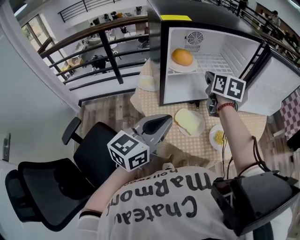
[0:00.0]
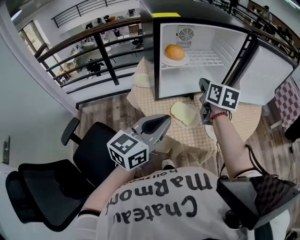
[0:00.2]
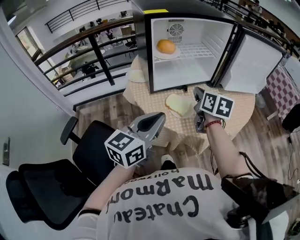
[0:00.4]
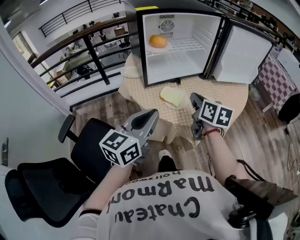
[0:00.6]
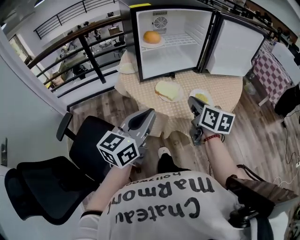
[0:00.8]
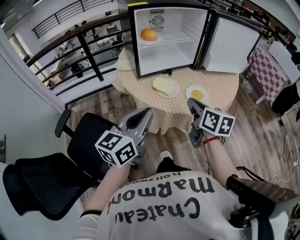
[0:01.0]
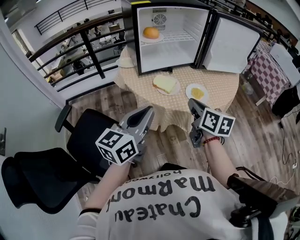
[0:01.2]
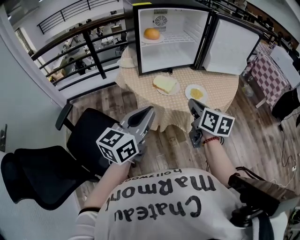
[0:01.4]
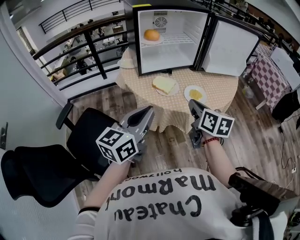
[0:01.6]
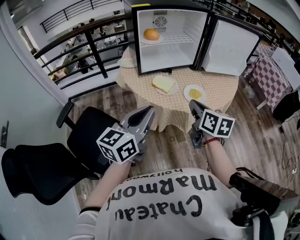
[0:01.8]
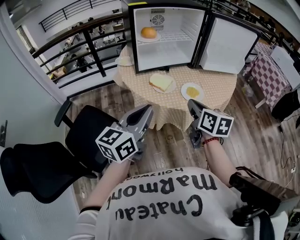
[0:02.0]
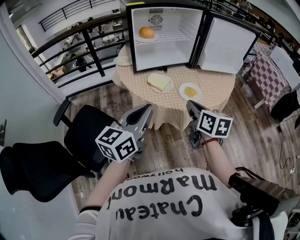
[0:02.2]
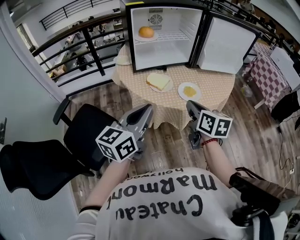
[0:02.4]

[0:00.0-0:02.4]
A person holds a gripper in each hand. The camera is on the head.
0:00.0 to 0:01.2: The left gripper shifts about 20 cm backward, while the right gripper shifts some 35 cm backward.
0:01.2 to 0:02.4: The right gripper changes place by roughly 5 cm; the left gripper travels to the right by about 5 cm.

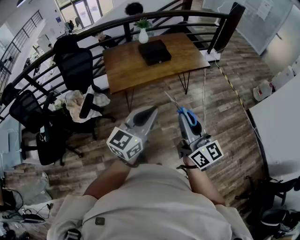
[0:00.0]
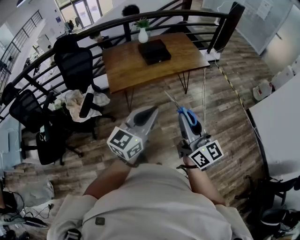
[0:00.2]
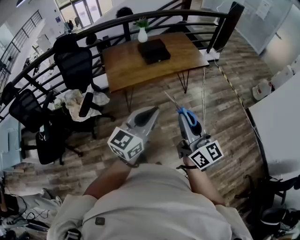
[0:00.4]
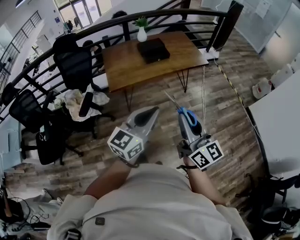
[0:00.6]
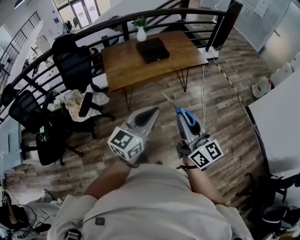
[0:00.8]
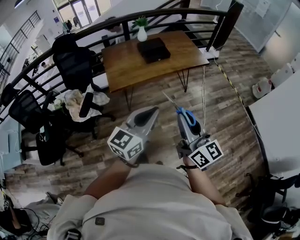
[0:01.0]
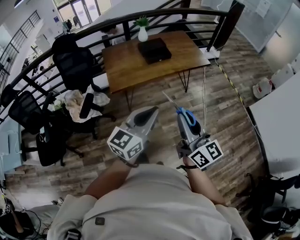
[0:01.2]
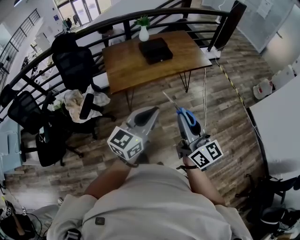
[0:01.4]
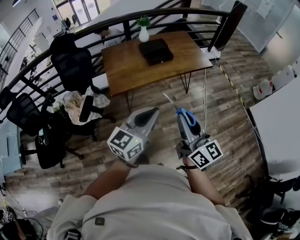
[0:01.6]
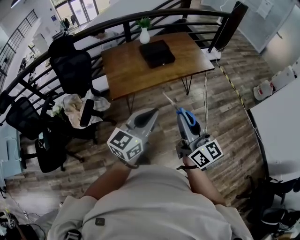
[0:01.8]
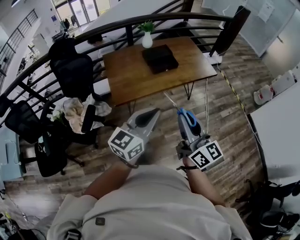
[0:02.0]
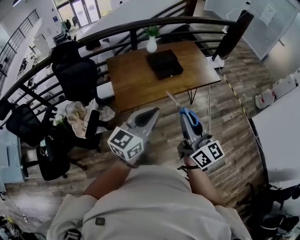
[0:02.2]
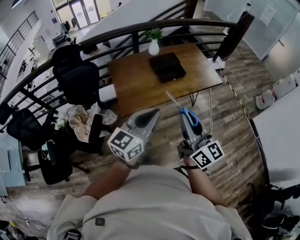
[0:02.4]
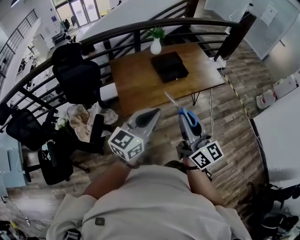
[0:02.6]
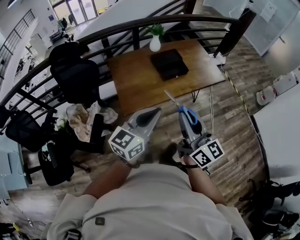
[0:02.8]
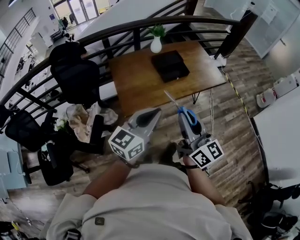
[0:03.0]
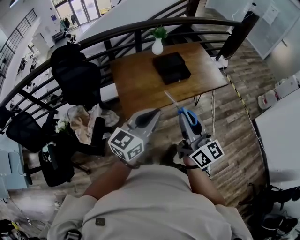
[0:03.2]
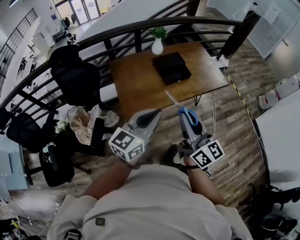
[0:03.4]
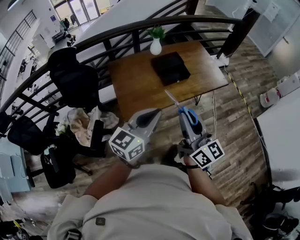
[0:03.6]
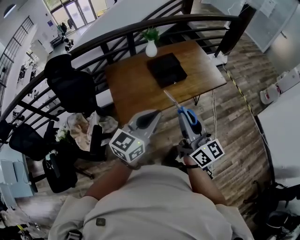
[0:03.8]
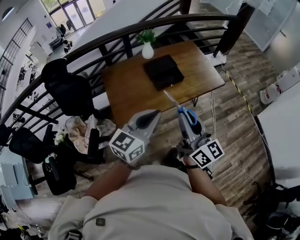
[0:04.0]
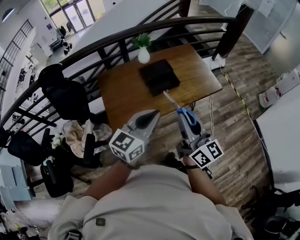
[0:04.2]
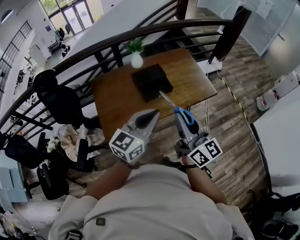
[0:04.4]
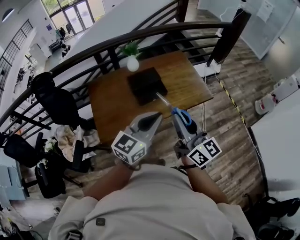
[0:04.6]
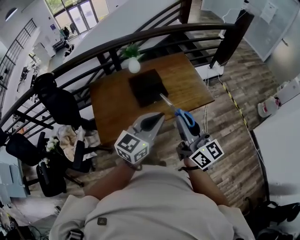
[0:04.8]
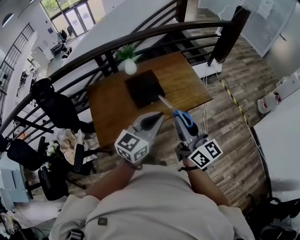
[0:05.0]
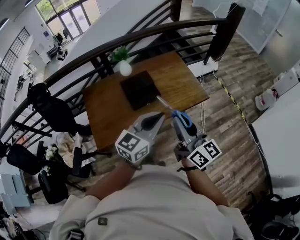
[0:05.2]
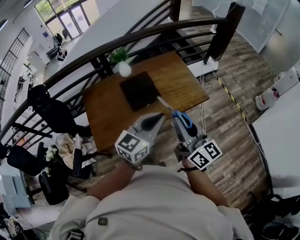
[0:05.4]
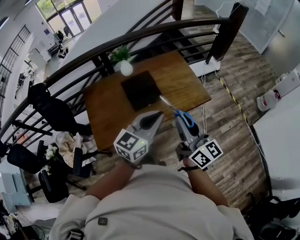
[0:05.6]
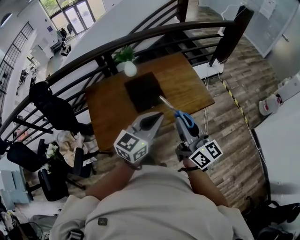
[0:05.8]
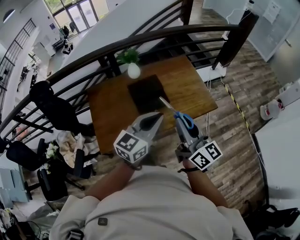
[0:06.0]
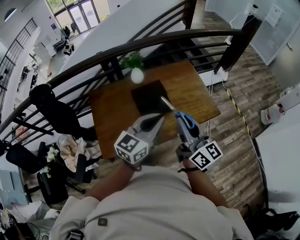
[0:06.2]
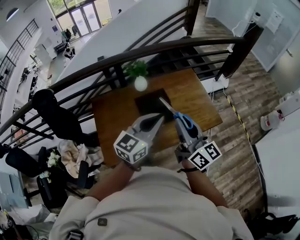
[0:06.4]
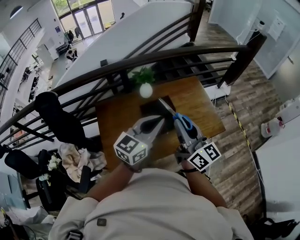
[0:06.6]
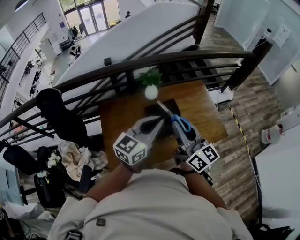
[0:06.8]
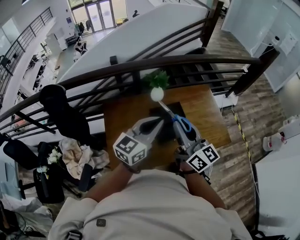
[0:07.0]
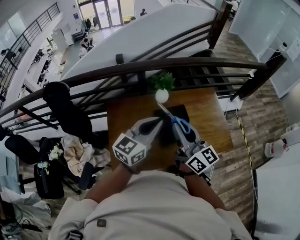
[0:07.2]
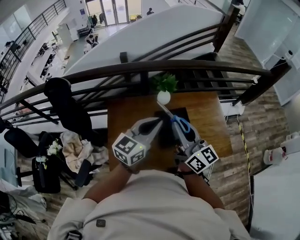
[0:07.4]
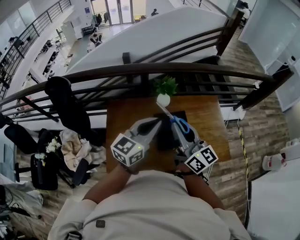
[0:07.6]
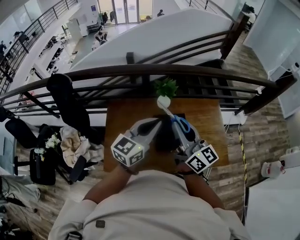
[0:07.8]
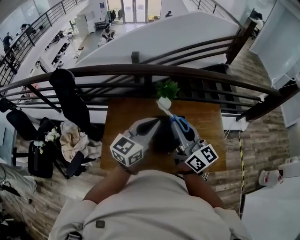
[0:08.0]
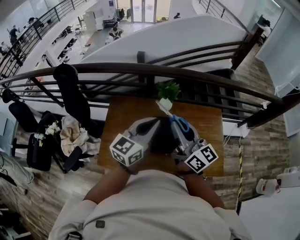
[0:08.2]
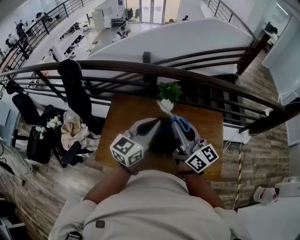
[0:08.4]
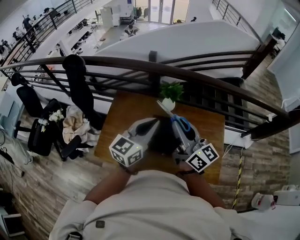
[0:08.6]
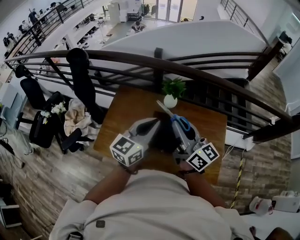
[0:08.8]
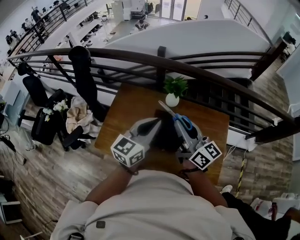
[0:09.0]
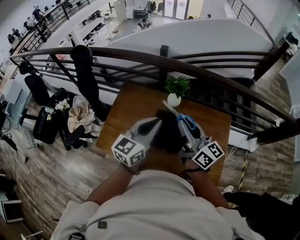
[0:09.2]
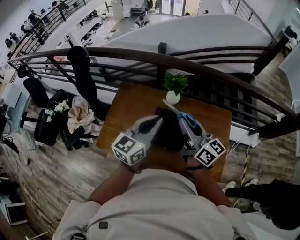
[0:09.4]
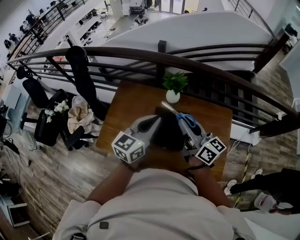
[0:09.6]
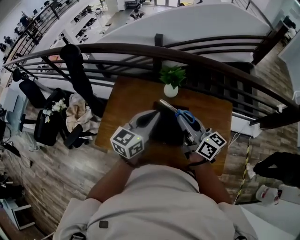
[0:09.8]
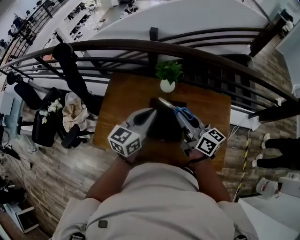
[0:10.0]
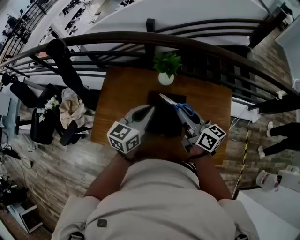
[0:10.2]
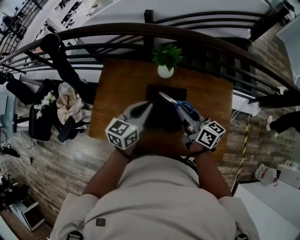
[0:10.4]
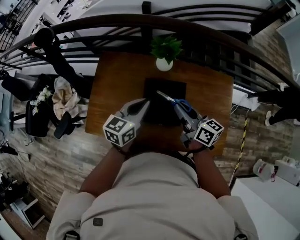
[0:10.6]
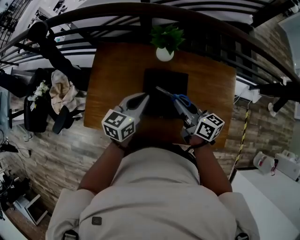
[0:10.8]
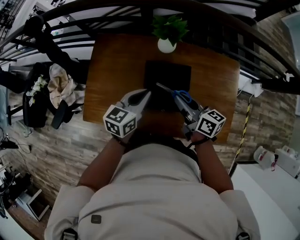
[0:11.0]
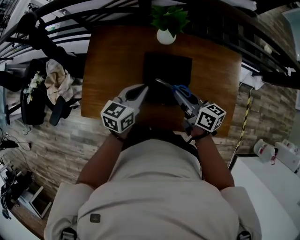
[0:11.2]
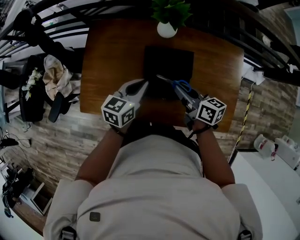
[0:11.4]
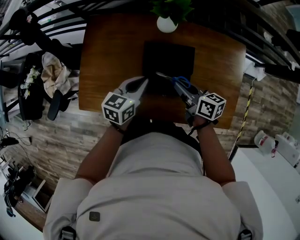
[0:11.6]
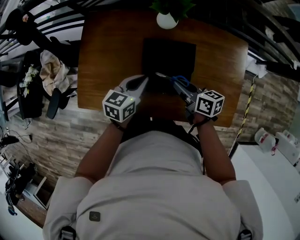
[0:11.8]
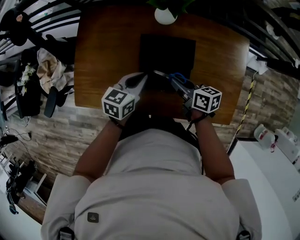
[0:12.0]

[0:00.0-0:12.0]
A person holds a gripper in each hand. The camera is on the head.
0:00.0 to 0:01.6: The left gripper ends up about 5 cm from where it was. Meanwhile the right gripper moves roughly 5 cm.
0:01.6 to 0:03.0: The grippers both shift forward and to the left by roughly 25 cm.
0:03.0 to 0:04.4: Both grippers move forward and to the right, some 25 cm.
0:04.4 to 0:06.0: The left gripper goes approximately 15 cm forward and to the right. The right gripper heads forward, covering roughly 15 cm.
0:06.0 to 0:07.6: Both grippers move forward and to the left, some 30 cm.
0:07.6 to 0:09.0: The grippers both shift to the right by about 10 cm. The right gripper turns by roughly 30 degrees. The left gripper rotates approximately 20 degrees.
0:09.0 to 0:10.4: The right gripper shifts some 15 cm downward, and turns by roughly 20 degrees, while the left gripper is displaced downward and forward by approximately 15 cm.
0:10.4 to 0:12.0: The two grippers go about 20 cm downward. The right gripper changes its angle by some 30 degrees. The left gripper swivels some 20 degrees.

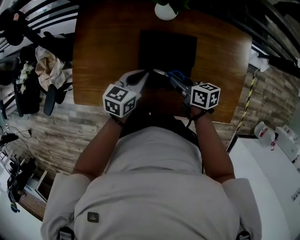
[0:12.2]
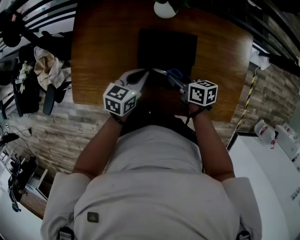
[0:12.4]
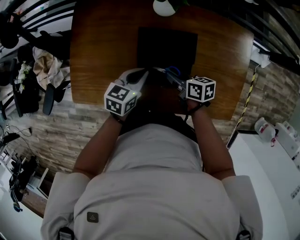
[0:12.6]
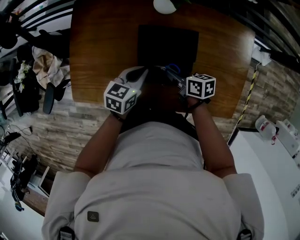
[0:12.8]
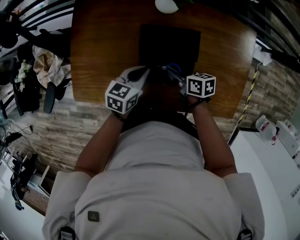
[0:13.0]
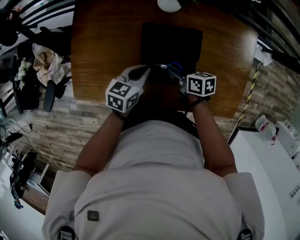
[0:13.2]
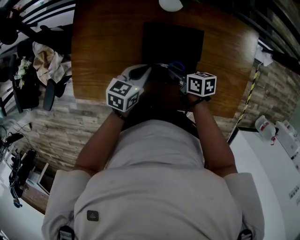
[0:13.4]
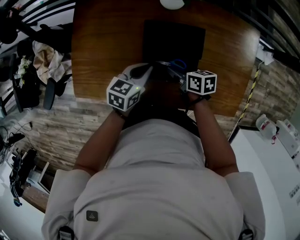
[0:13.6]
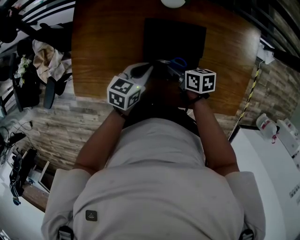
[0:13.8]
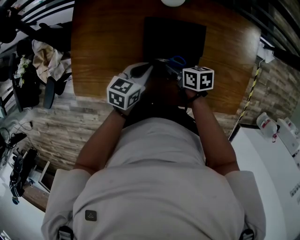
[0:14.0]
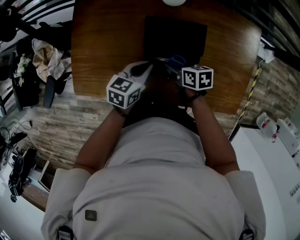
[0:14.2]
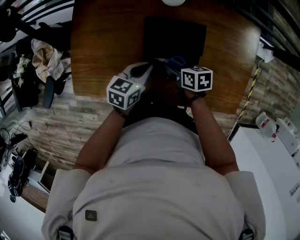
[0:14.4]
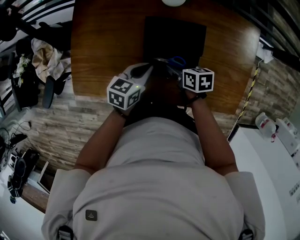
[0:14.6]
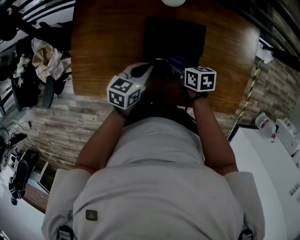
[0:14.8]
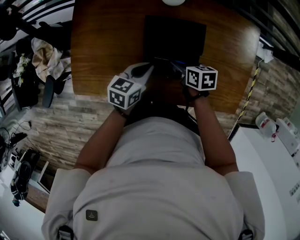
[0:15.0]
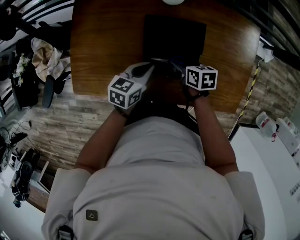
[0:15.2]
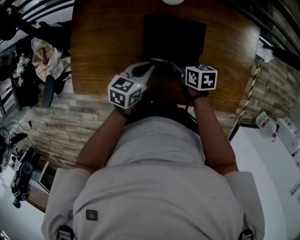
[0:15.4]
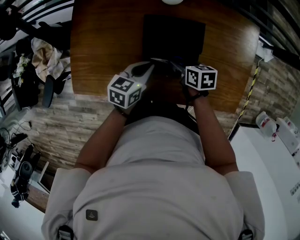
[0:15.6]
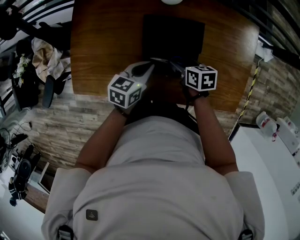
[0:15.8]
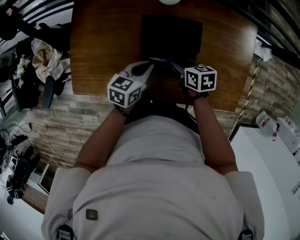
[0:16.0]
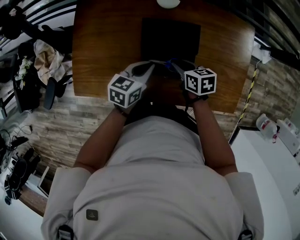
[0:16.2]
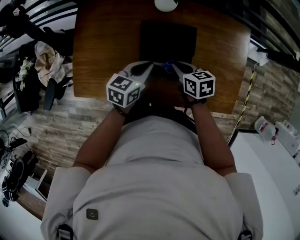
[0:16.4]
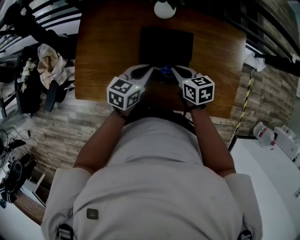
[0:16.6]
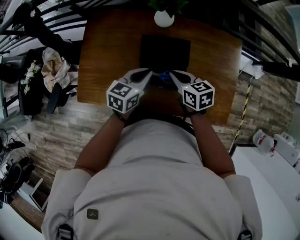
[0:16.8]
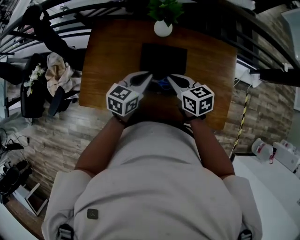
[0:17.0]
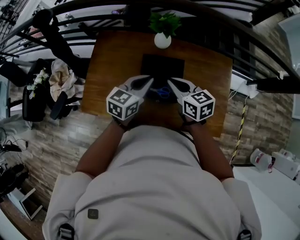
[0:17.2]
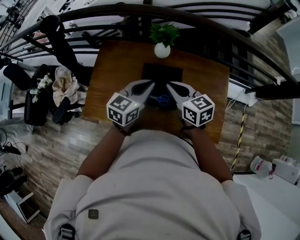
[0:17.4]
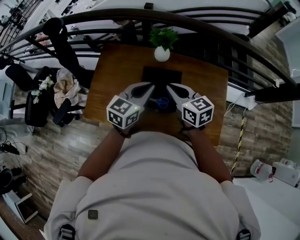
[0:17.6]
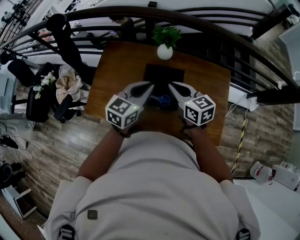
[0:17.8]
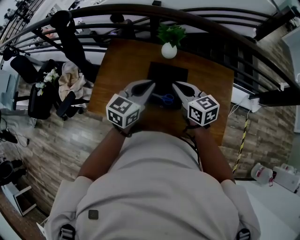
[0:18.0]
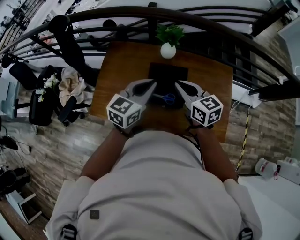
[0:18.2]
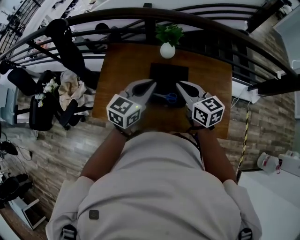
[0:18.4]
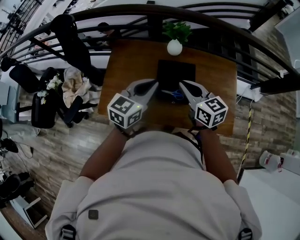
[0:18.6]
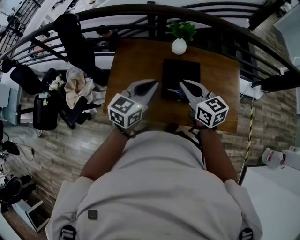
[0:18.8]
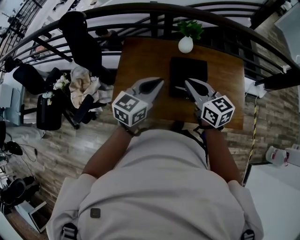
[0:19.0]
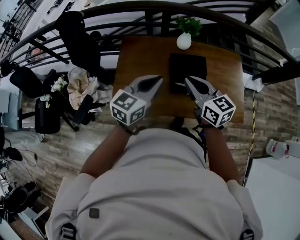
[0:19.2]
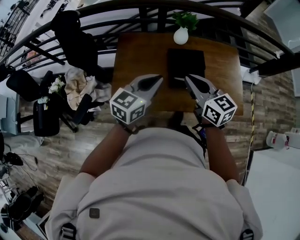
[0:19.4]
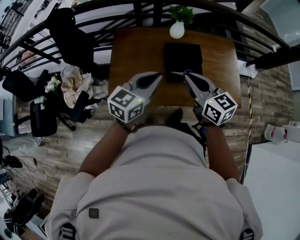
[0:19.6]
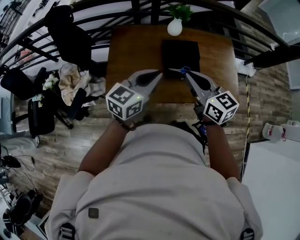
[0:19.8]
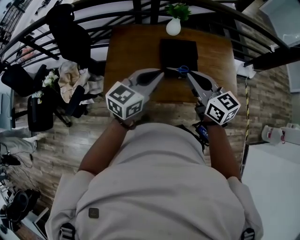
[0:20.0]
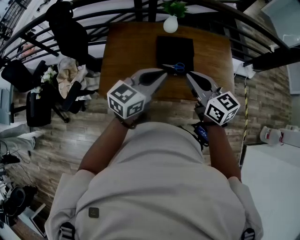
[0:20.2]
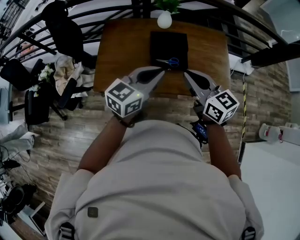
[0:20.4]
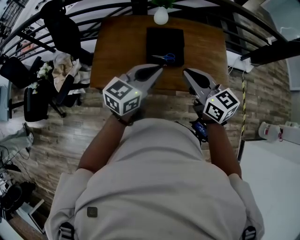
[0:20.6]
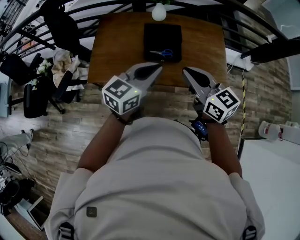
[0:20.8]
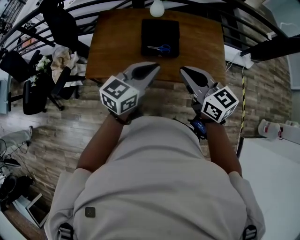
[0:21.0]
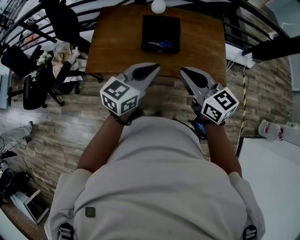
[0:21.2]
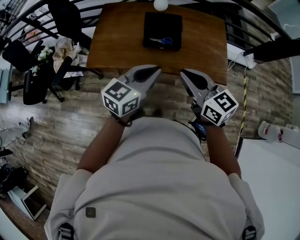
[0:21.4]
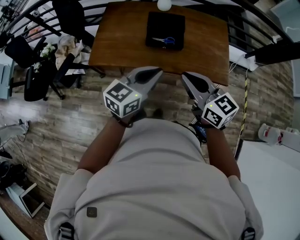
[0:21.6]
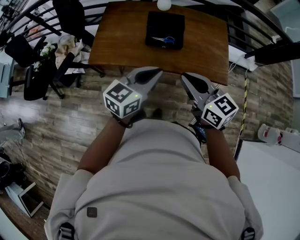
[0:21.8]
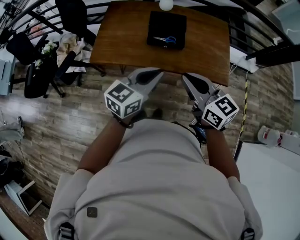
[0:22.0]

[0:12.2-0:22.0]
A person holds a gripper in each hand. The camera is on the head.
0:12.2 to 0:13.6: The right gripper travels downward by about 5 cm, and opens.
0:13.6 to 0:15.0: The right gripper opens.
0:15.0 to 0:16.4: The right gripper goes roughly 5 cm upward, and closes up; the left gripper shifts by approximately 5 cm.
0:16.4 to 0:17.8: The grippers both shift upward by roughly 25 cm. The right gripper changes its angle by approximately 30 degrees; the left gripper turns by roughly 20 degrees.
0:17.8 to 0:19.2: The grippers both shift to the left and backward by about 20 cm.
0:19.2 to 0:20.6: The two grippers go about 20 cm to the right and backward.
0:20.6 to 0:22.0: The two grippers go roughly 15 cm backward.
